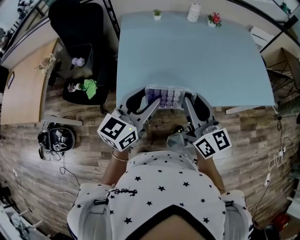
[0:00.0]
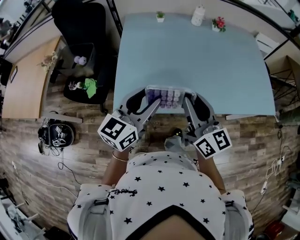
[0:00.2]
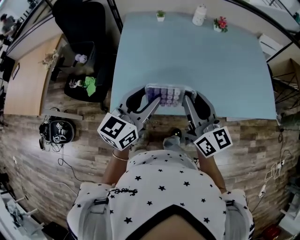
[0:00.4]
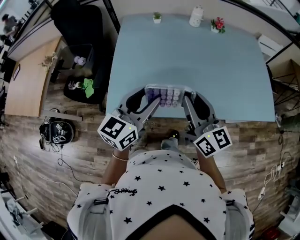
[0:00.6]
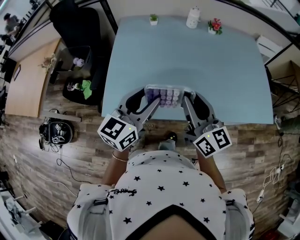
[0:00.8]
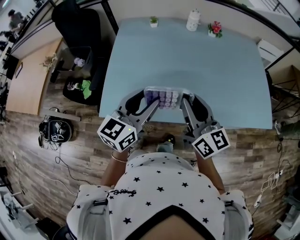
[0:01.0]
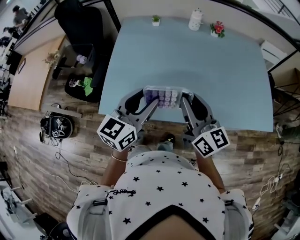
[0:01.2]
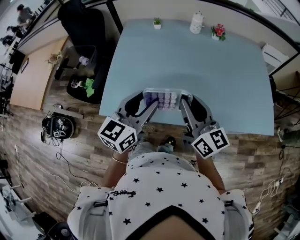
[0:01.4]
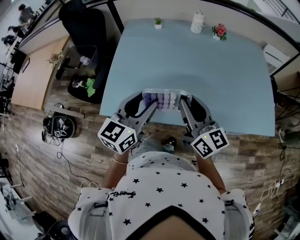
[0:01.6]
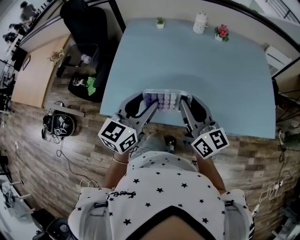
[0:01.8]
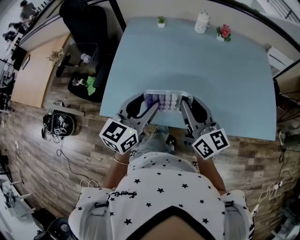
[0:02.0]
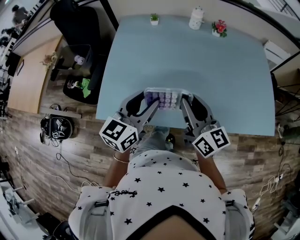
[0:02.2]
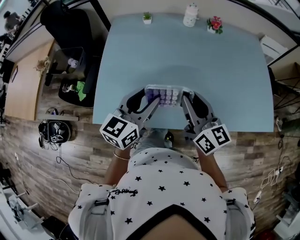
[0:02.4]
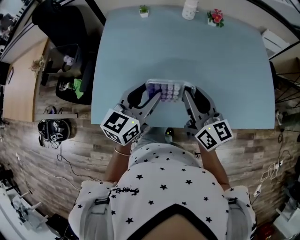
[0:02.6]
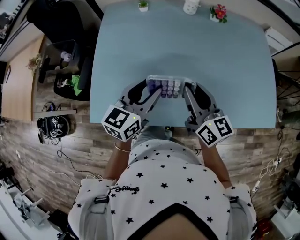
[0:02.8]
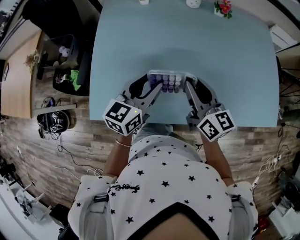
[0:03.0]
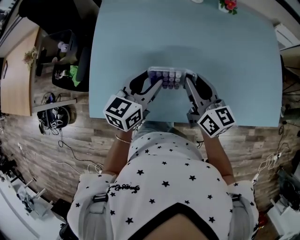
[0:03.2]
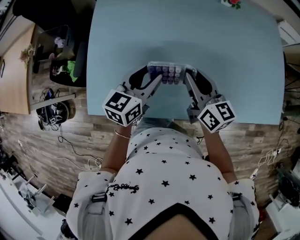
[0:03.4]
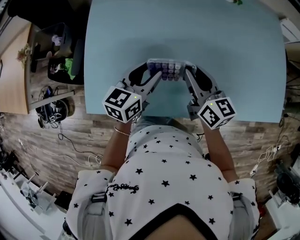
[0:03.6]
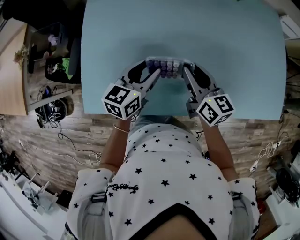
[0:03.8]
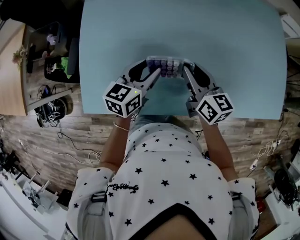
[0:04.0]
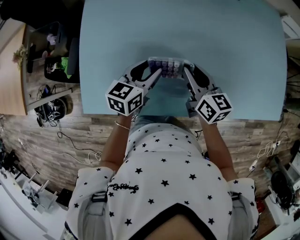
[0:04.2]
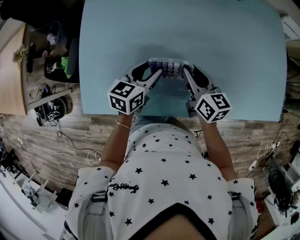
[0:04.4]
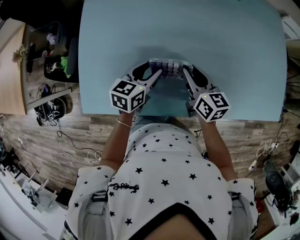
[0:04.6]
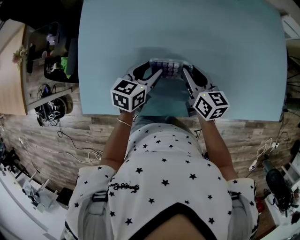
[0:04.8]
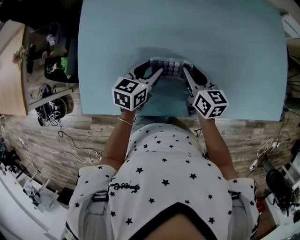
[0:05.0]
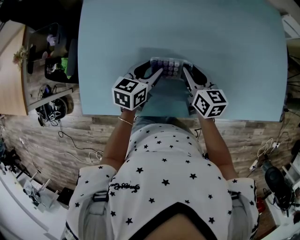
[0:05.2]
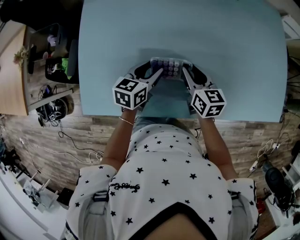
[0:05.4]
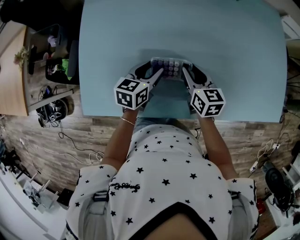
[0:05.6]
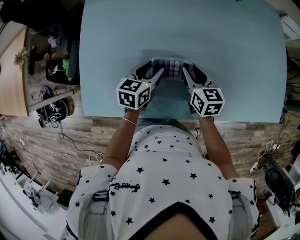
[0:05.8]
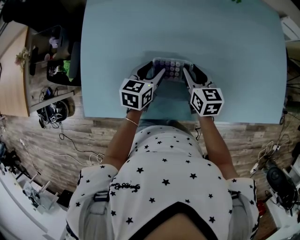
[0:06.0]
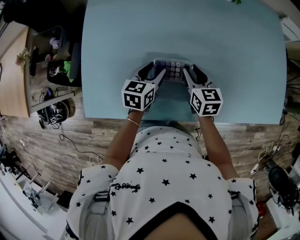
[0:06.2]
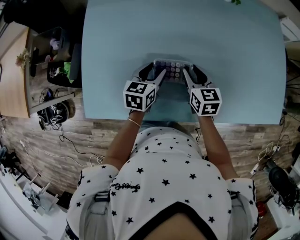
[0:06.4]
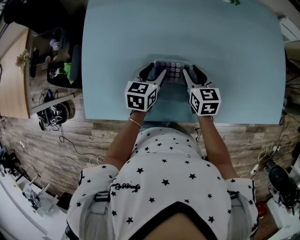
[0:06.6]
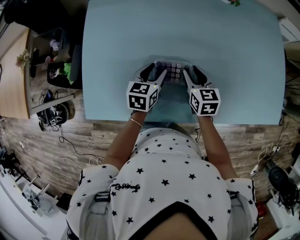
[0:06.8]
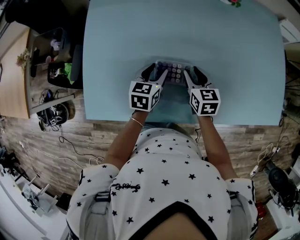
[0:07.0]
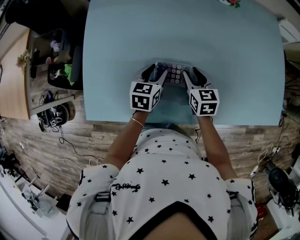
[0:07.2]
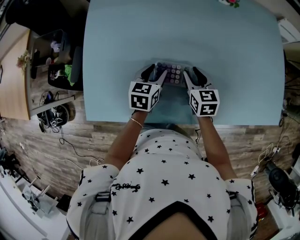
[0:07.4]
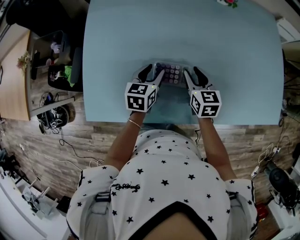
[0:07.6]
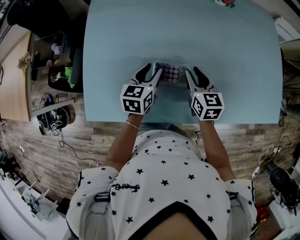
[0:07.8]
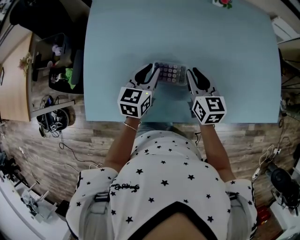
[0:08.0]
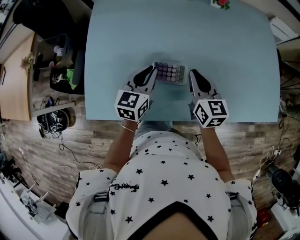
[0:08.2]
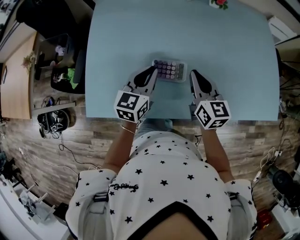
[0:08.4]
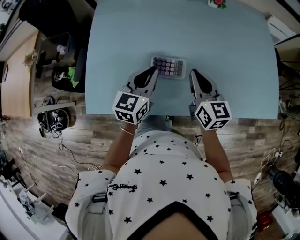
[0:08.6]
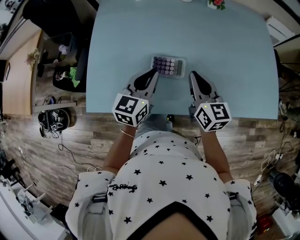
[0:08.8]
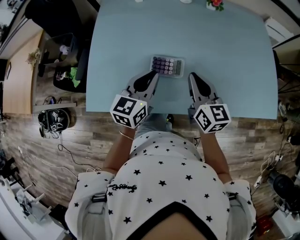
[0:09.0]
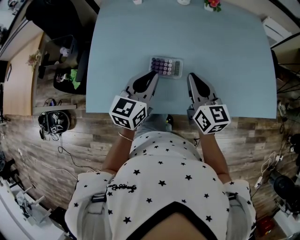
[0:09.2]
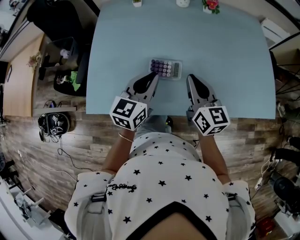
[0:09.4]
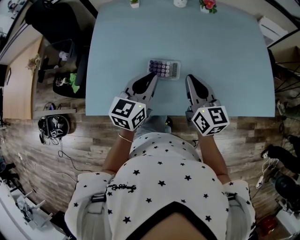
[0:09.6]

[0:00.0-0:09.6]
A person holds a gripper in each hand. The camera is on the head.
0:00.0 to 0:01.6: Both grippers move to the right and forward, about 15 cm.
0:01.6 to 0:03.2: Both grippers travel together forward and downward, about 15 cm.
0:03.2 to 0:04.8: The two grippers go about 10 cm downward.
0:04.8 to 0:06.4: There are only small adjustments of the grippers.
0:06.4 to 0:08.0: The two grippers go about 5 cm upward. The left gripper closes up.
0:08.0 to 0:09.6: The grippers both shift upward and backward by some 10 cm.

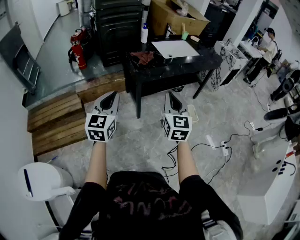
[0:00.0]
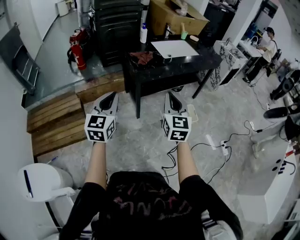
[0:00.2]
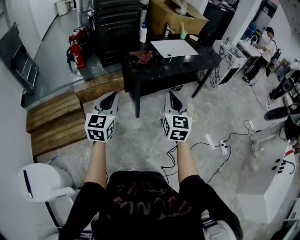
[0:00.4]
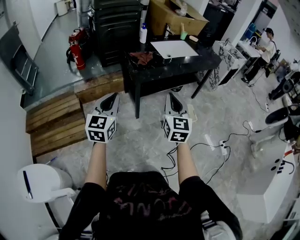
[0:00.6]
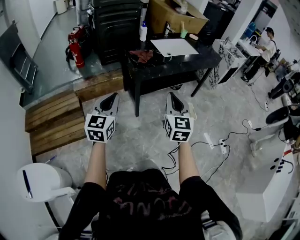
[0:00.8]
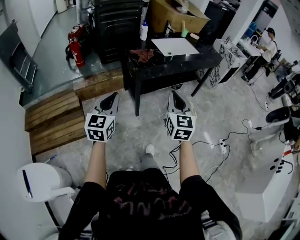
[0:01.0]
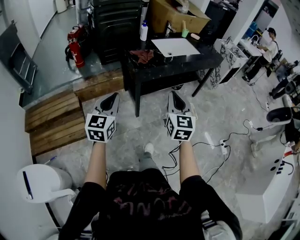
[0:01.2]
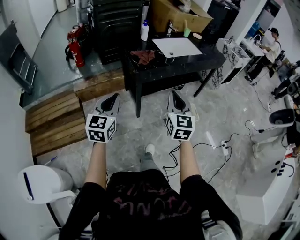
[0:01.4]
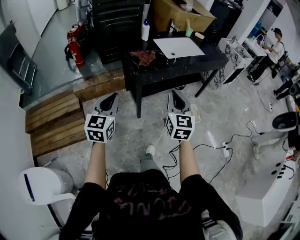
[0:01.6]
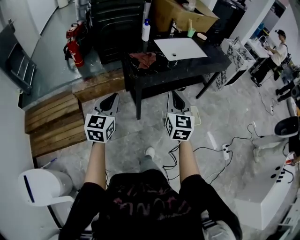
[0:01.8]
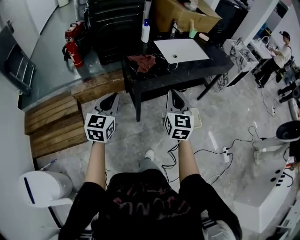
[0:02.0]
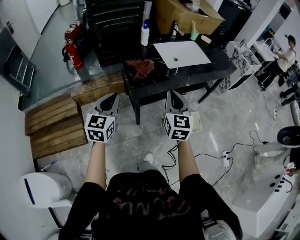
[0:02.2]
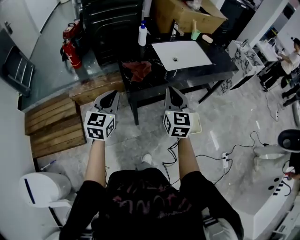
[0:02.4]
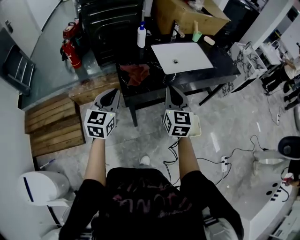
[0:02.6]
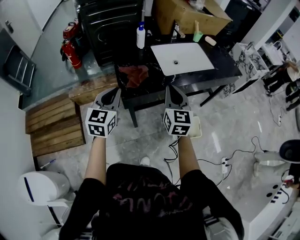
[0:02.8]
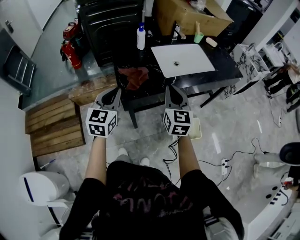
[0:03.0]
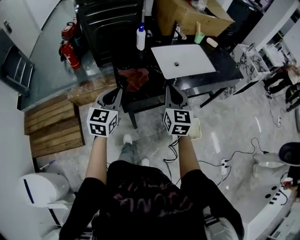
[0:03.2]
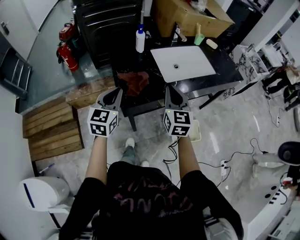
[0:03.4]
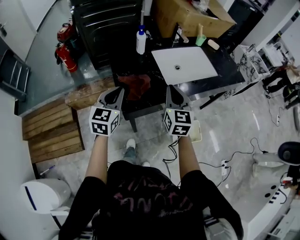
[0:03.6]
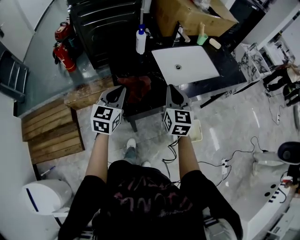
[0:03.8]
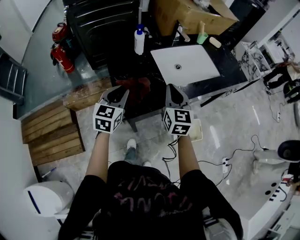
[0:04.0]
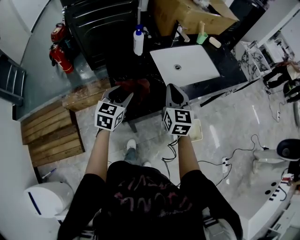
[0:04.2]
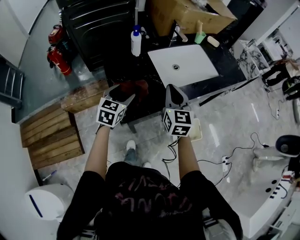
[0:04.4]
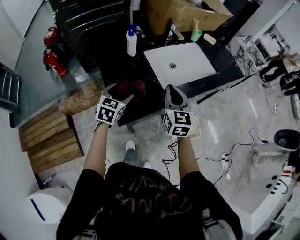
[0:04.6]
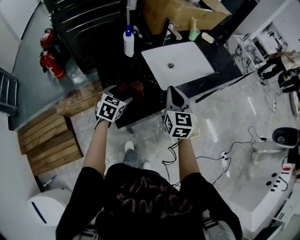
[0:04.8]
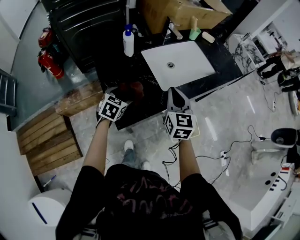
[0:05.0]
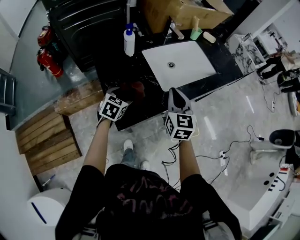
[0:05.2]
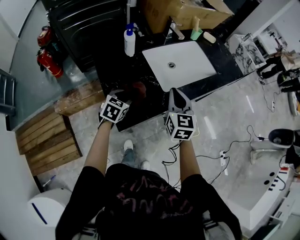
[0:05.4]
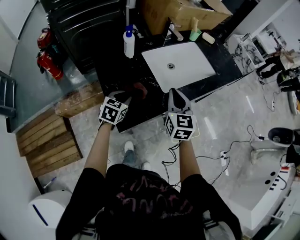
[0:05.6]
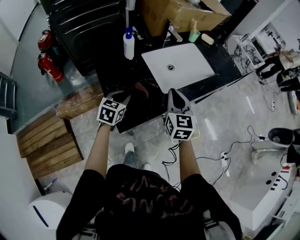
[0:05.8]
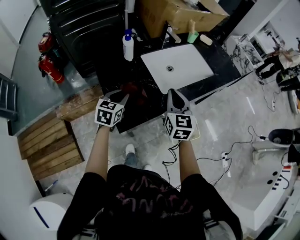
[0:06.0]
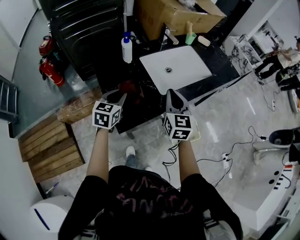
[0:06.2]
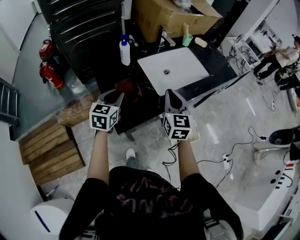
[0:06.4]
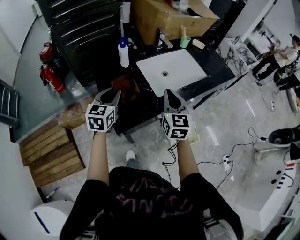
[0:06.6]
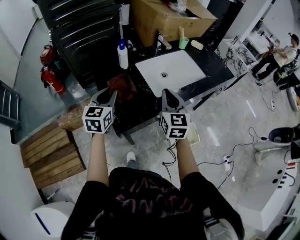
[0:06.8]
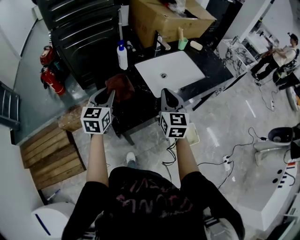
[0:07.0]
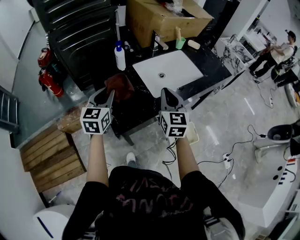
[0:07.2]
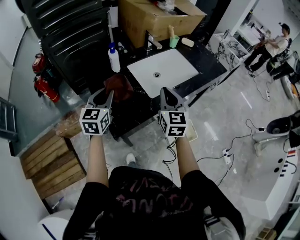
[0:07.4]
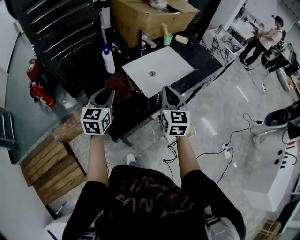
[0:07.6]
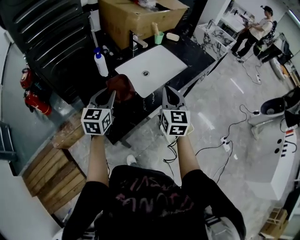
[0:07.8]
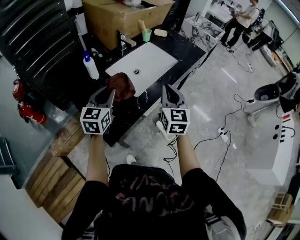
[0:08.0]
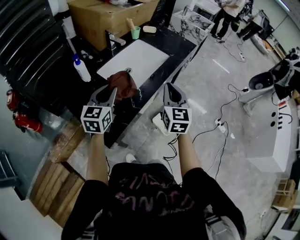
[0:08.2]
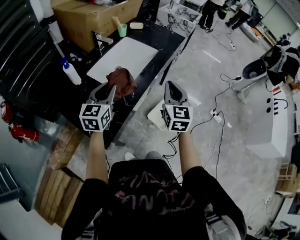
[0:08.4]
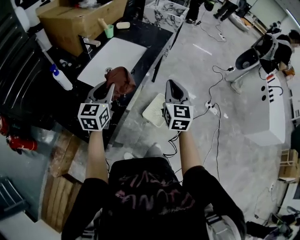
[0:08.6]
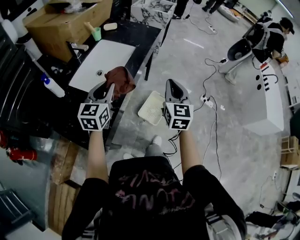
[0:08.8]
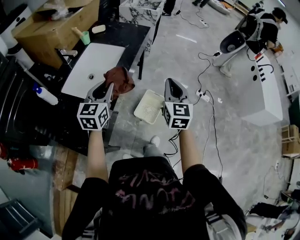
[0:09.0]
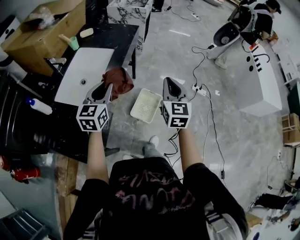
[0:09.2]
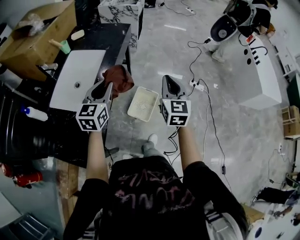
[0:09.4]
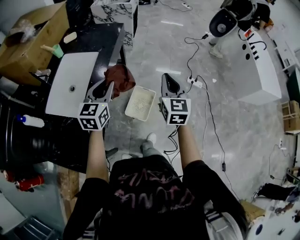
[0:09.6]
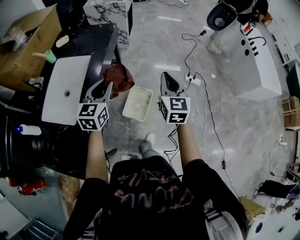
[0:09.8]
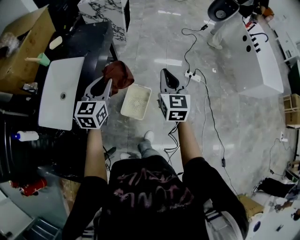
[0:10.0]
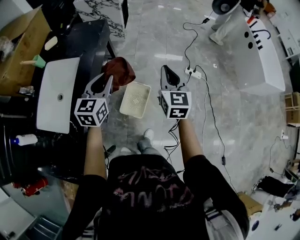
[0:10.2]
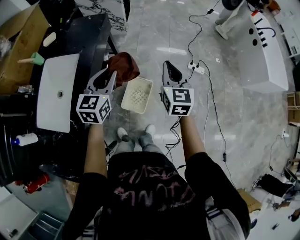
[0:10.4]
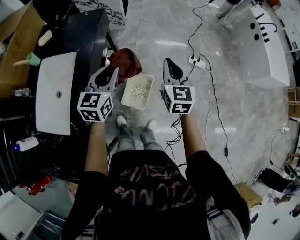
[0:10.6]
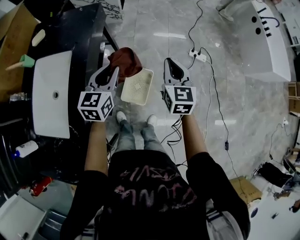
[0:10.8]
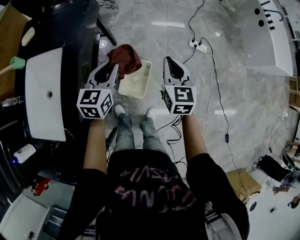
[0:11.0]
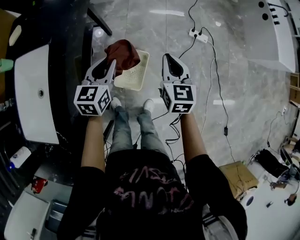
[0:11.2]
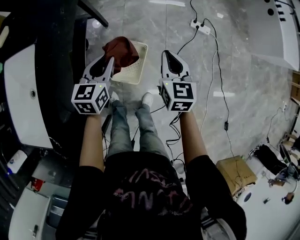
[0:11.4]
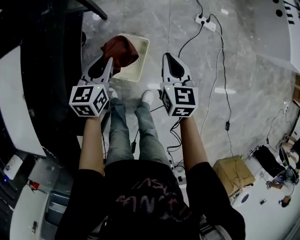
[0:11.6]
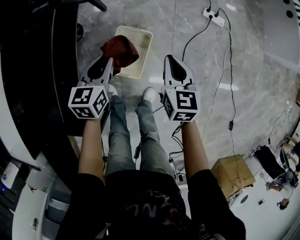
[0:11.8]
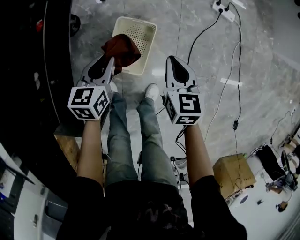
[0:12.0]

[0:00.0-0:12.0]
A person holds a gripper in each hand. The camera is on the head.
0:00.0 to 0:01.6: The grippers both shift forward by approximately 10 cm.
0:01.6 to 0:03.0: The grippers both shift forward by roughly 30 cm.
0:03.0 to 0:04.4: The right gripper travels forward by some 15 cm. Meanwhile the left gripper is displaced forward and downward by roughly 20 cm, and opens up.
0:04.4 to 0:06.0: The left gripper moves some 10 cm downward and comes back, and closes.
0:06.0 to 0:07.6: The left gripper travels upward by roughly 10 cm. The right gripper ends up approximately 5 cm from where it was.
0:07.6 to 0:09.0: The right gripper changes place by some 25 cm, and swivels some 40 degrees, while the left gripper moves roughly 25 cm, and turns by some 40 degrees.
0:09.0 to 0:10.4: The grippers both shift forward and to the right by approximately 30 cm.
0:10.4 to 0:12.0: The two grippers go about 50 cm downward. The right gripper rotates some 30 degrees, while the left gripper swivels approximately 30 degrees.

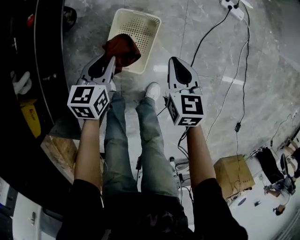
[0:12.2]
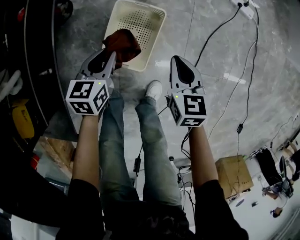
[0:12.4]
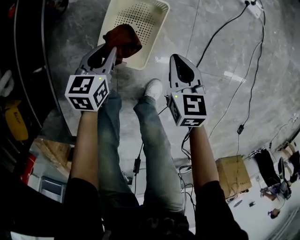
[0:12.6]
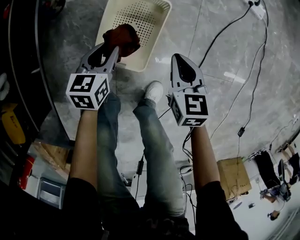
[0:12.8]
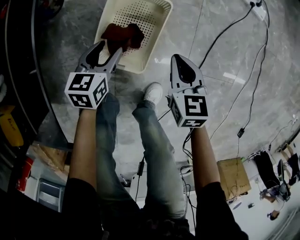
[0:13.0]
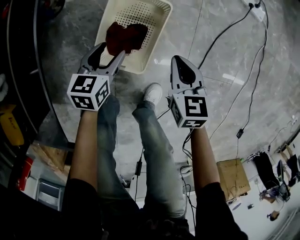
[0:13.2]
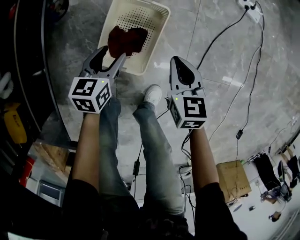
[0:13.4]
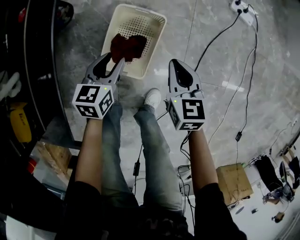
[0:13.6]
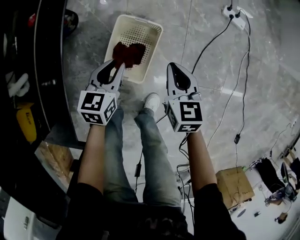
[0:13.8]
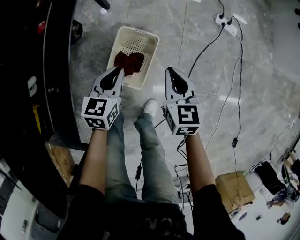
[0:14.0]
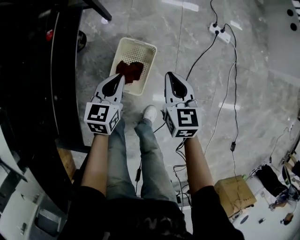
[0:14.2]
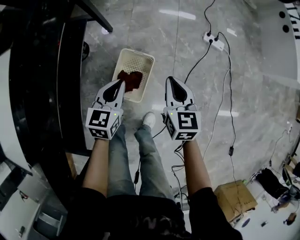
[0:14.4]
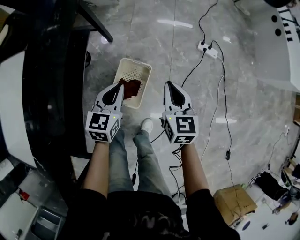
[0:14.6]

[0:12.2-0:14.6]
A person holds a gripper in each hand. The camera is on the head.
0:12.2 to 0:13.4: Both grippers travel together downward, roughly 15 cm. The left gripper opens its fingers.
0:13.4 to 0:14.6: Both grippers move upward, roughly 35 cm. The left gripper closes up.
